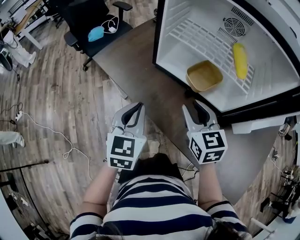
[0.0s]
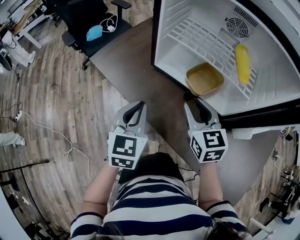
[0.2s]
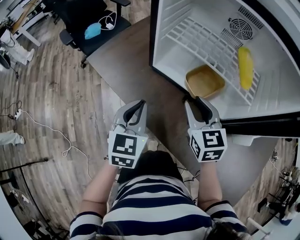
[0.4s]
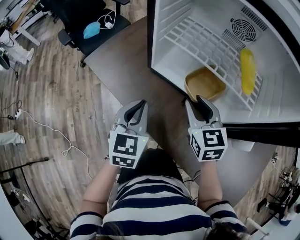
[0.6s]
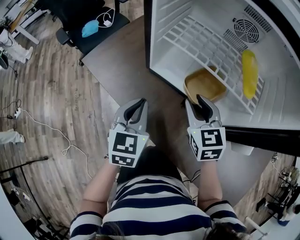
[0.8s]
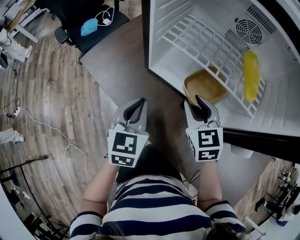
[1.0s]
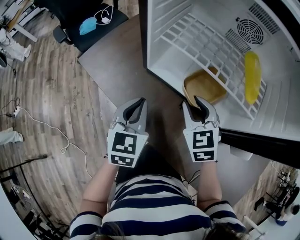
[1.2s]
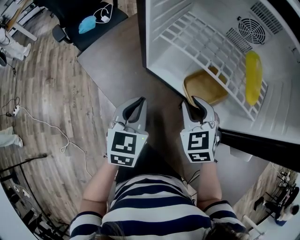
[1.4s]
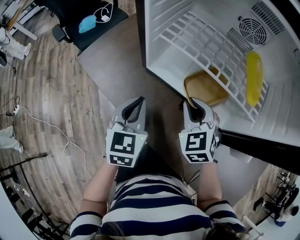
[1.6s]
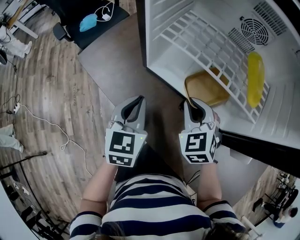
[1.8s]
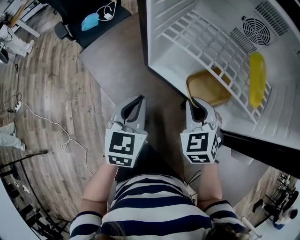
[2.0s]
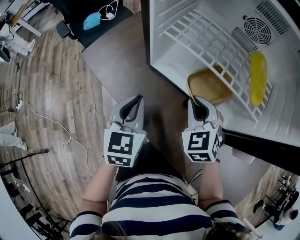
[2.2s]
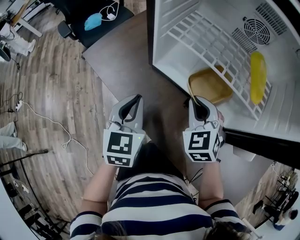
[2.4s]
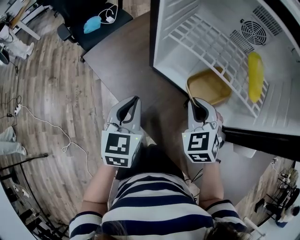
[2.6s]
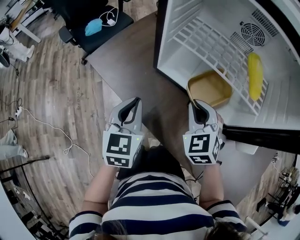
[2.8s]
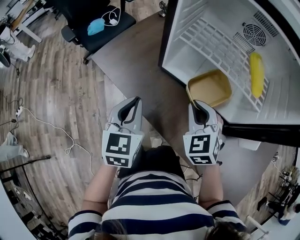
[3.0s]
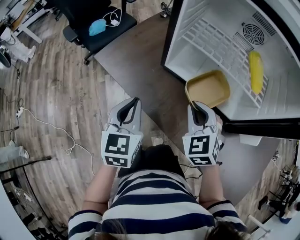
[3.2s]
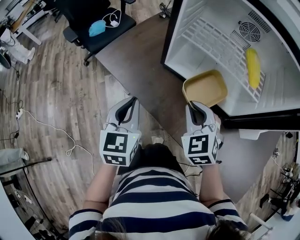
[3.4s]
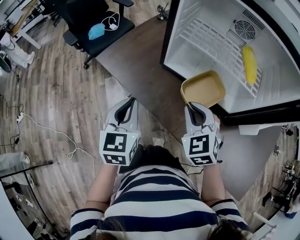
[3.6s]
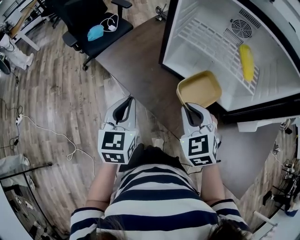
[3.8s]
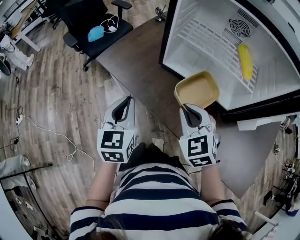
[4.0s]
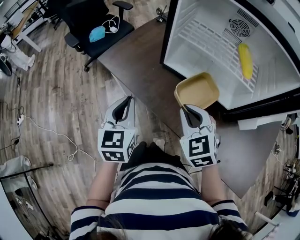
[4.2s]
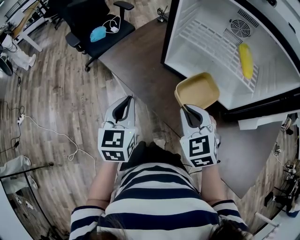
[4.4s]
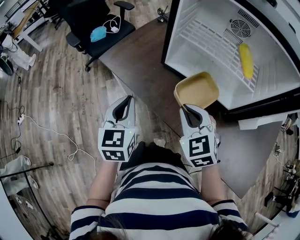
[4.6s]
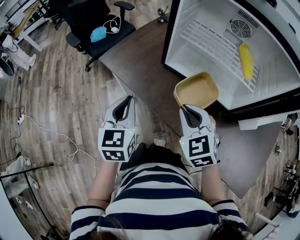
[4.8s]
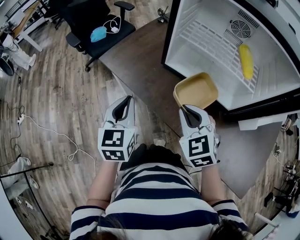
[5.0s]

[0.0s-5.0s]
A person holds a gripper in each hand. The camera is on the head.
0.0s to 1.6s: Both grippers move forward and downward, roughly 15 cm. The right gripper changes its angle by some 30 degrees.
1.6s to 3.4s: The left gripper is displaced to the left, backward and upward by roughly 15 cm. Meanwhile the right gripper moves backward, to the left and upward, some 10 cm.
3.4s to 5.0s: The right gripper moves approximately 5 cm.

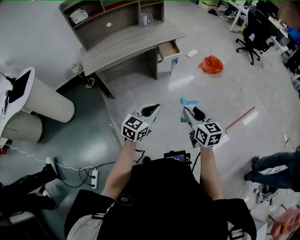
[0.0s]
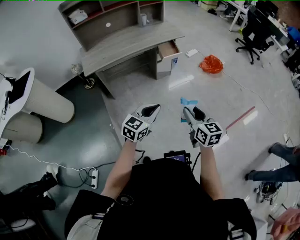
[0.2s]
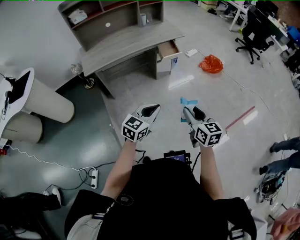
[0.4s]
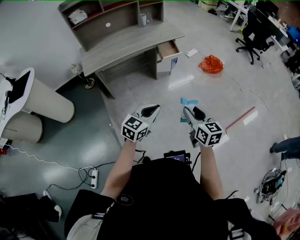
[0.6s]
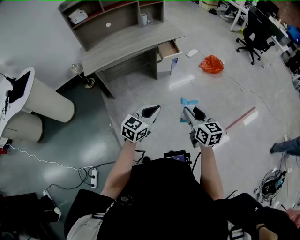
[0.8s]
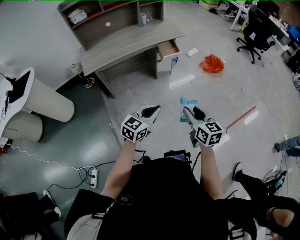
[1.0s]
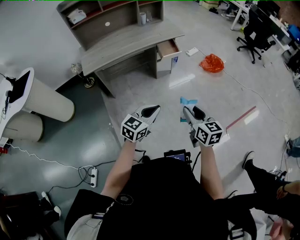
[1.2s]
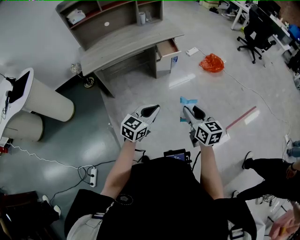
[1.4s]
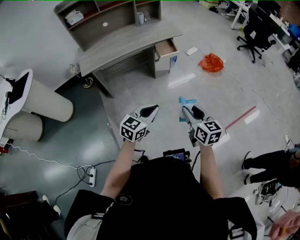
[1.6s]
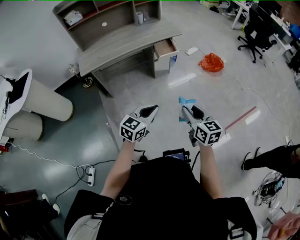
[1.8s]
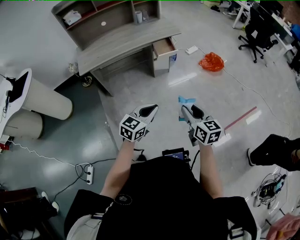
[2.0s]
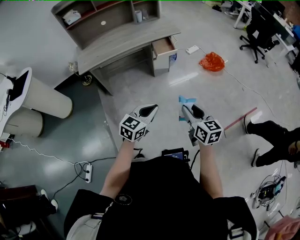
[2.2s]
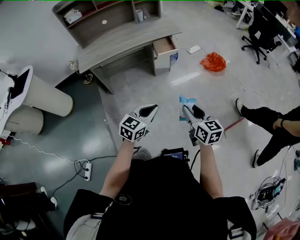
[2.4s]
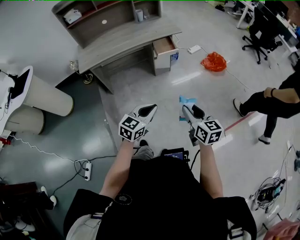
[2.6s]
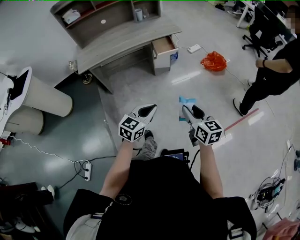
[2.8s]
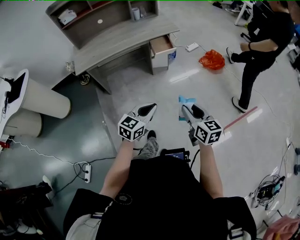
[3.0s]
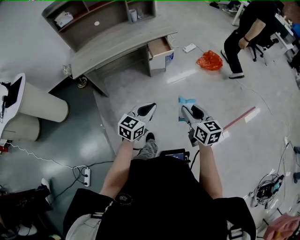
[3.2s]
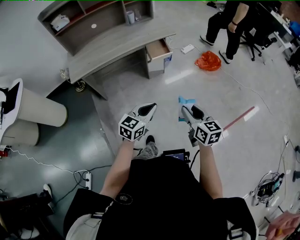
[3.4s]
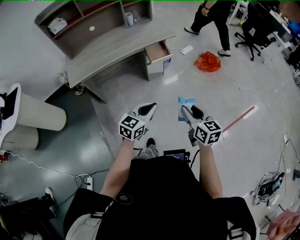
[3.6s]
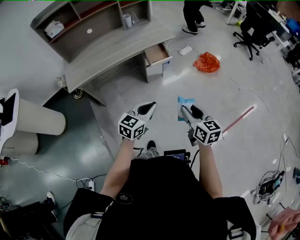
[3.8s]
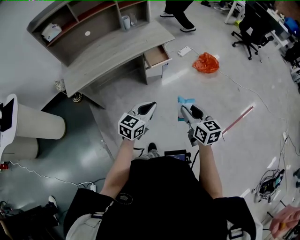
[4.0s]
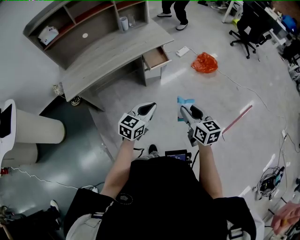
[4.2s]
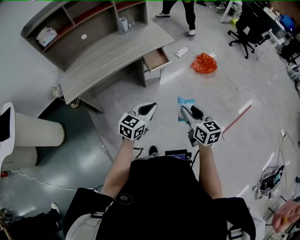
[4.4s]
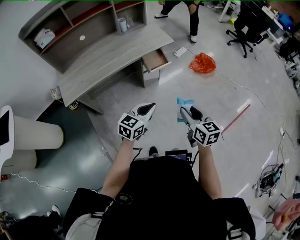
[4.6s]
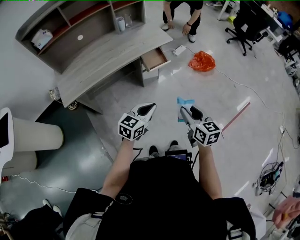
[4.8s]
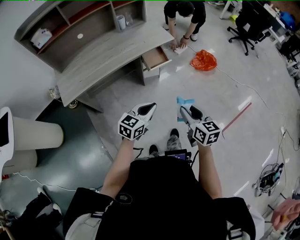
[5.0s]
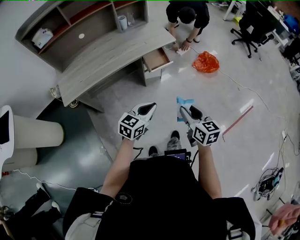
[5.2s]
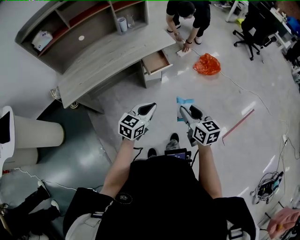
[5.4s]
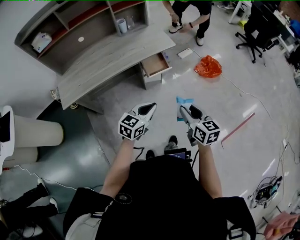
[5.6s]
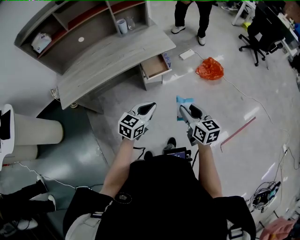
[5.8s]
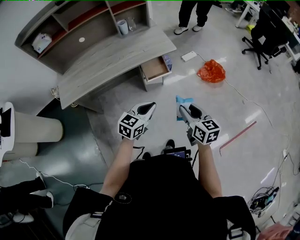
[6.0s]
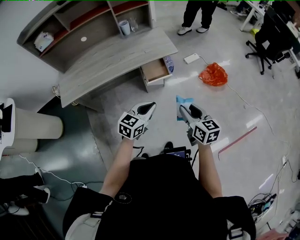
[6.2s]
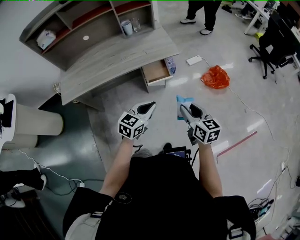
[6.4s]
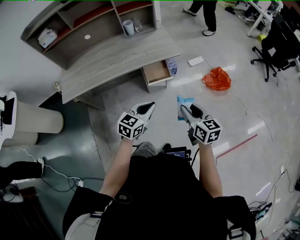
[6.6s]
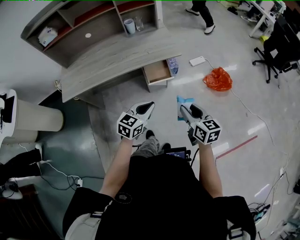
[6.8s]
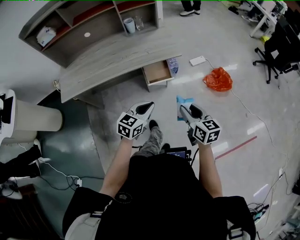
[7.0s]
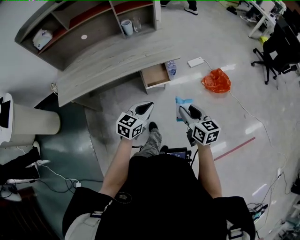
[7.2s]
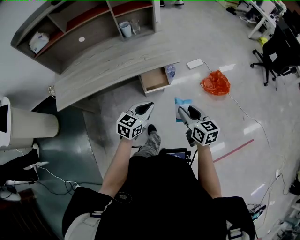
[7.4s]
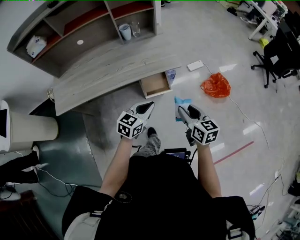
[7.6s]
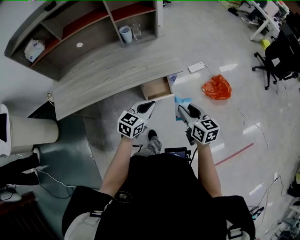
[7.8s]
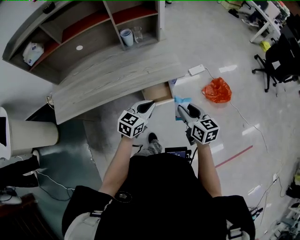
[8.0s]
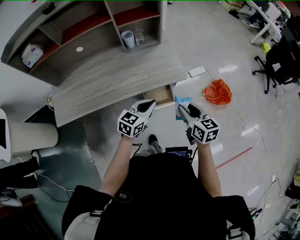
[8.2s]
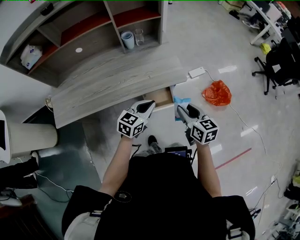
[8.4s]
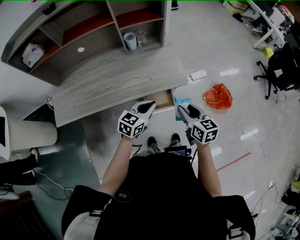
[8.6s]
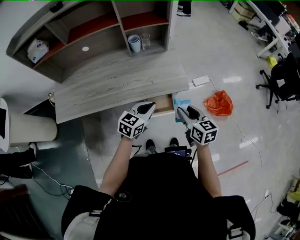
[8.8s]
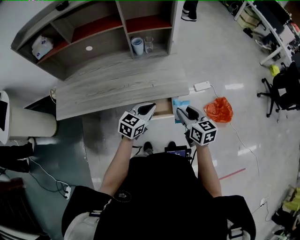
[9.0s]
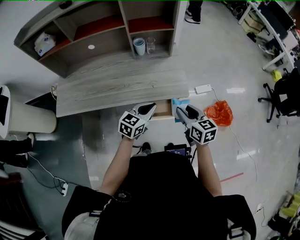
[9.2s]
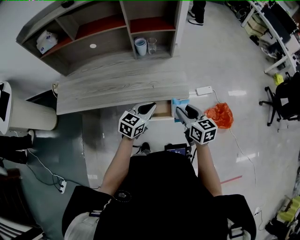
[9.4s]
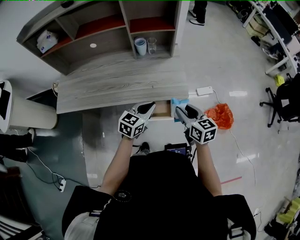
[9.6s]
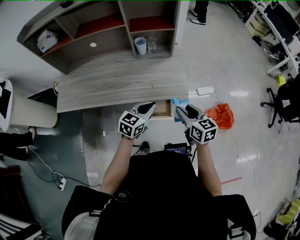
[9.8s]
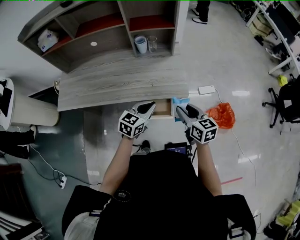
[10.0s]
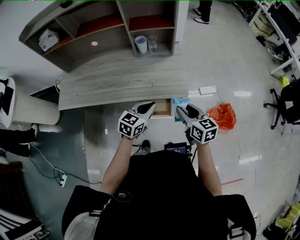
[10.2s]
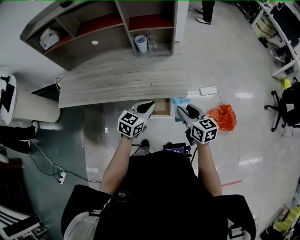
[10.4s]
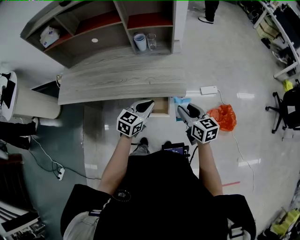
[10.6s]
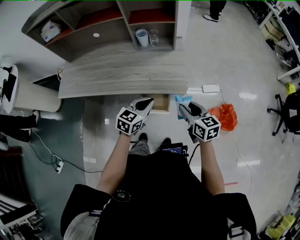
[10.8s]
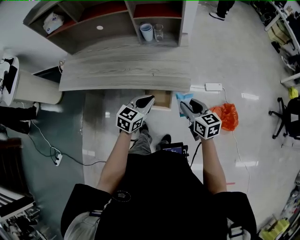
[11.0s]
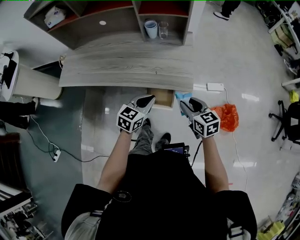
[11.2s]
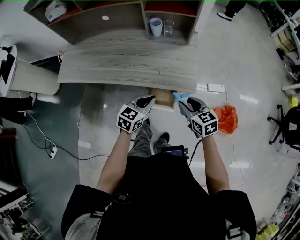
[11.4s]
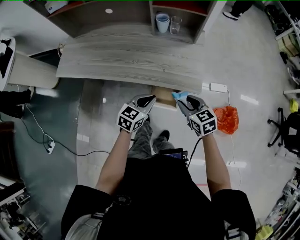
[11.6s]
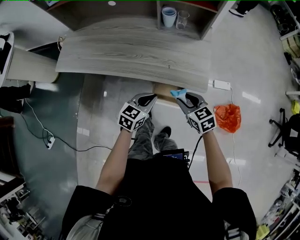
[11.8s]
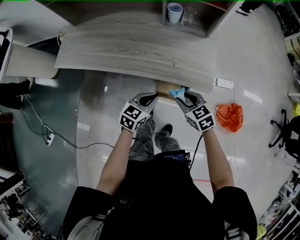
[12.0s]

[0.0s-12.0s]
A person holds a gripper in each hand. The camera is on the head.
0.0s to 1.6s: There are only small adjustments of the grippers.
1.6s to 3.0s: Both grippers move to the right, some 5 cm.
3.0s to 4.4s: Both grippers travel together forward and to the left, approximately 20 cm.
4.4s to 6.0s: Both grippers travel together forward, approximately 15 cm.
6.0s to 7.6s: Both grippers move forward, some 15 cm.
7.6s to 9.0s: The grippers both shift forward by some 15 cm.
9.0s to 10.4s: The right gripper moves some 5 cm.
10.4s to 12.0s: The grippers both shift downward and to the left by about 15 cm. The right gripper swivels some 40 degrees.

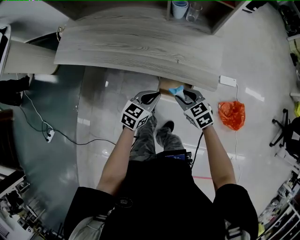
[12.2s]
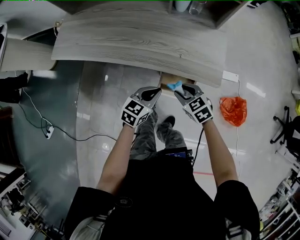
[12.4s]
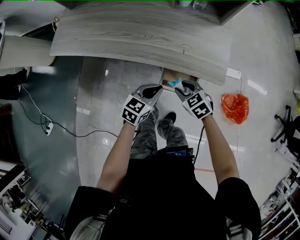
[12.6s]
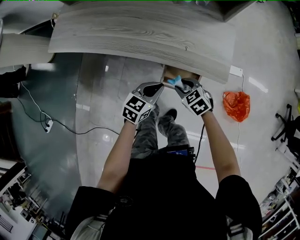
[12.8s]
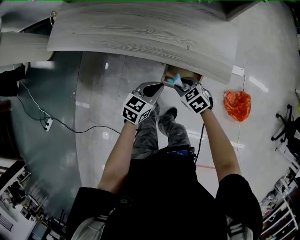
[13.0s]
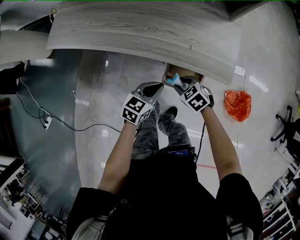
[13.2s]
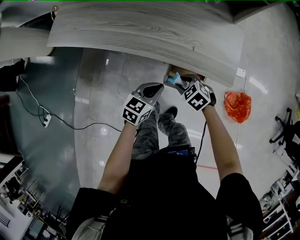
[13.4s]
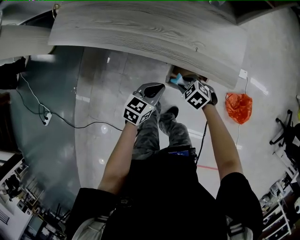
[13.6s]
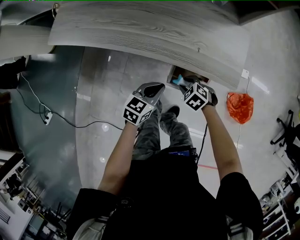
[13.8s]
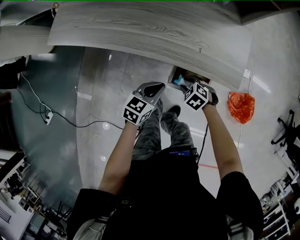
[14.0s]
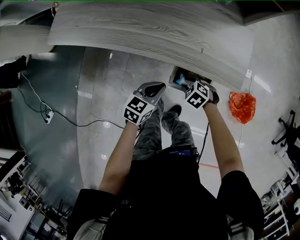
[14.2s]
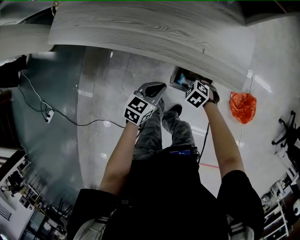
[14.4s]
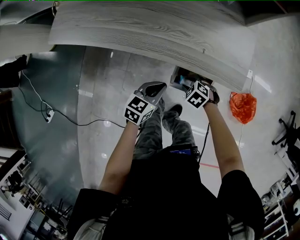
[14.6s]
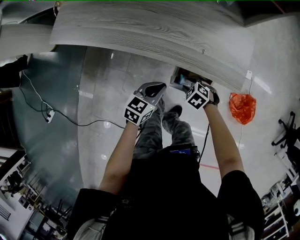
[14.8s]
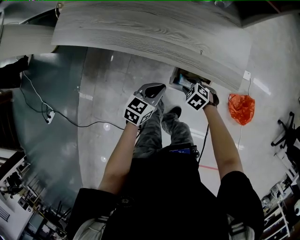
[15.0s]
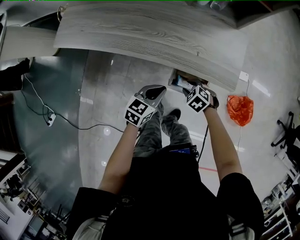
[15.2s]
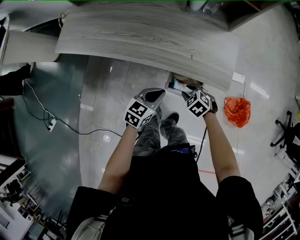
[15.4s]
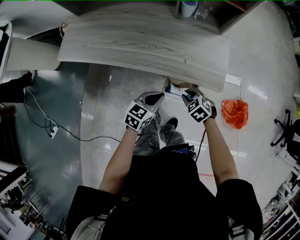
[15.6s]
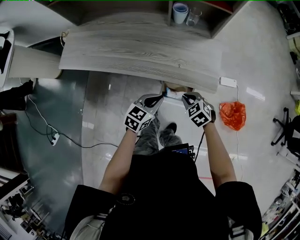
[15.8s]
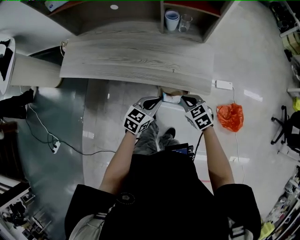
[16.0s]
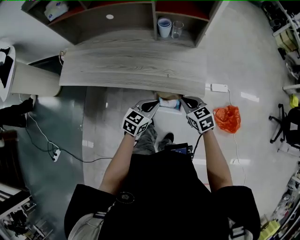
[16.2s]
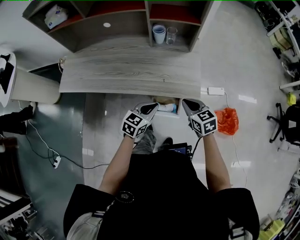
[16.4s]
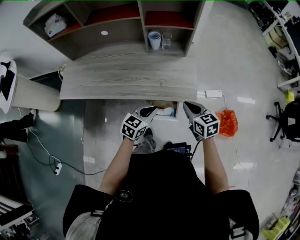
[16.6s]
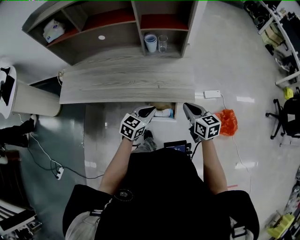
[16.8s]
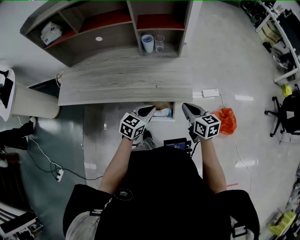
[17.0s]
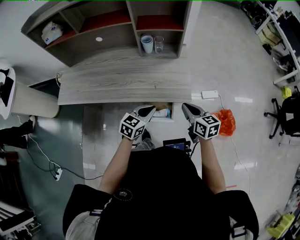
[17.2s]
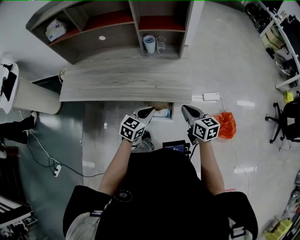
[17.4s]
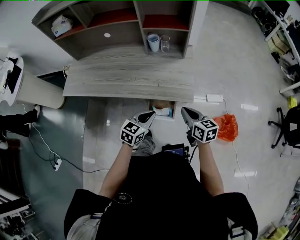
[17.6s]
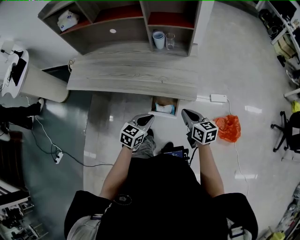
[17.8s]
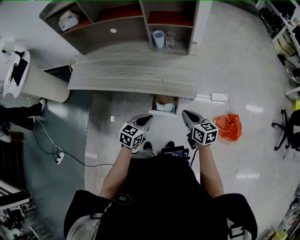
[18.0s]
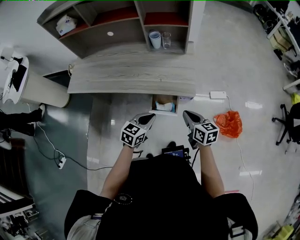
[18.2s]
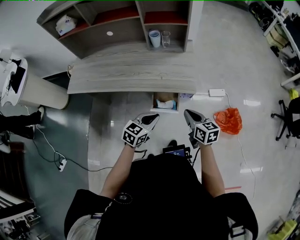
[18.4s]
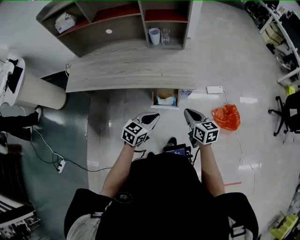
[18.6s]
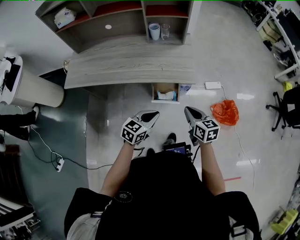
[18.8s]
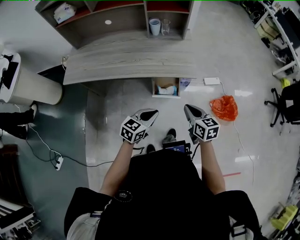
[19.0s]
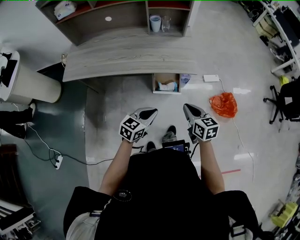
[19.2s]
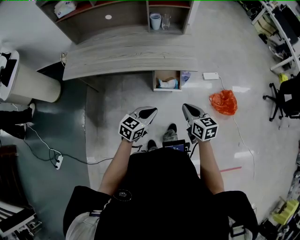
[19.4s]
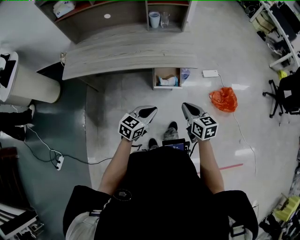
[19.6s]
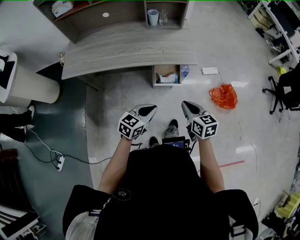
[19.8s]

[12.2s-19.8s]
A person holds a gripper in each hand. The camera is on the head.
12.2s to 13.8s: The right gripper moves downward, about 15 cm, and turns by about 30 degrees; the left gripper shifts approximately 5 cm downward.
13.8s to 15.2s: The grippers move only a little.
15.2s to 16.8s: The right gripper is displaced upward by approximately 30 cm, tilts its fingers some 40 degrees upward, and closes. The left gripper is displaced upward by about 15 cm.
16.8s to 18.2s: The grippers both shift backward by roughly 10 cm.
18.2s to 19.8s: The right gripper is displaced backward and to the left by about 20 cm; the left gripper is displaced backward by about 15 cm.
